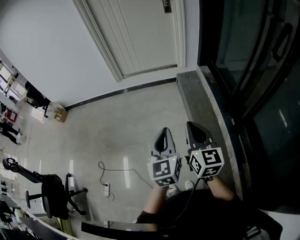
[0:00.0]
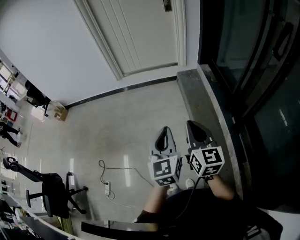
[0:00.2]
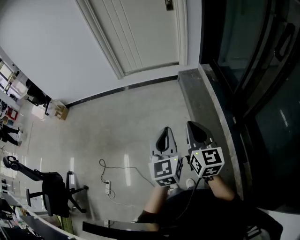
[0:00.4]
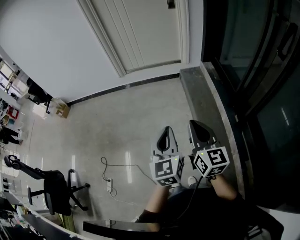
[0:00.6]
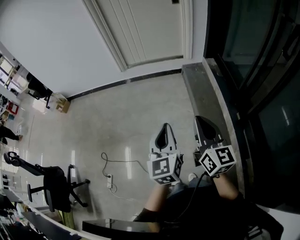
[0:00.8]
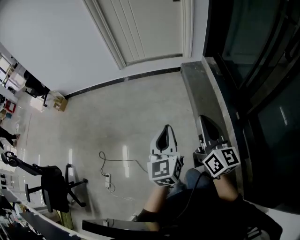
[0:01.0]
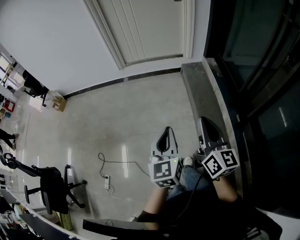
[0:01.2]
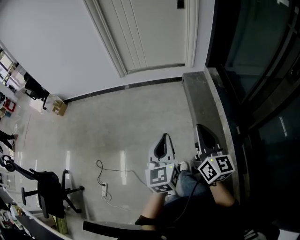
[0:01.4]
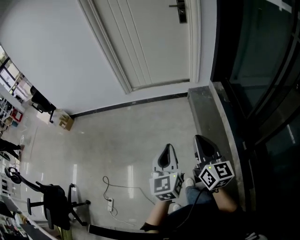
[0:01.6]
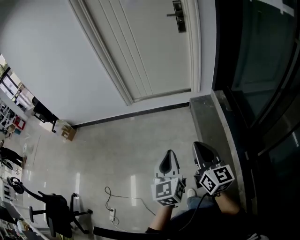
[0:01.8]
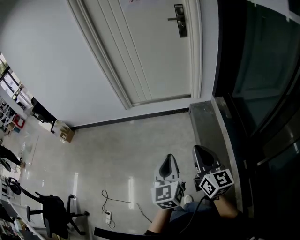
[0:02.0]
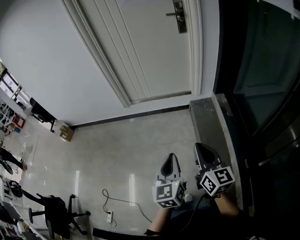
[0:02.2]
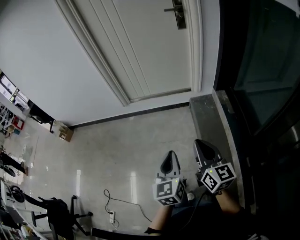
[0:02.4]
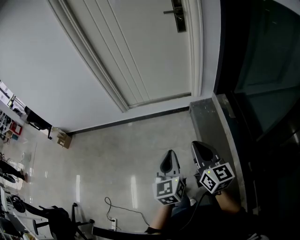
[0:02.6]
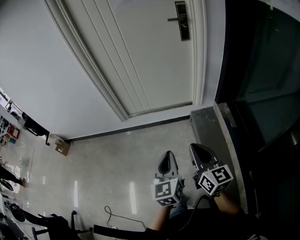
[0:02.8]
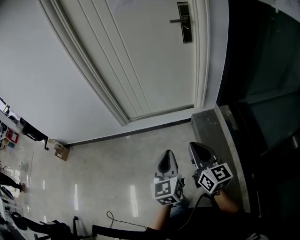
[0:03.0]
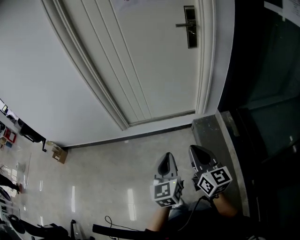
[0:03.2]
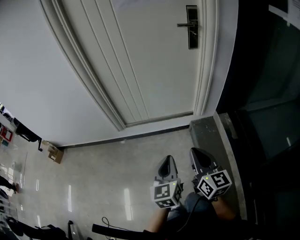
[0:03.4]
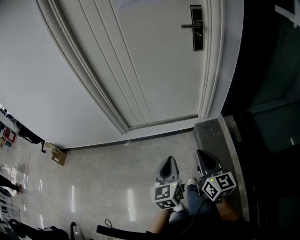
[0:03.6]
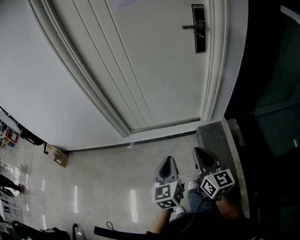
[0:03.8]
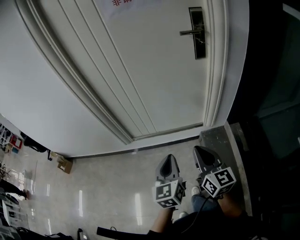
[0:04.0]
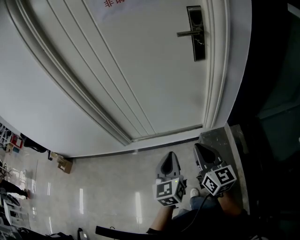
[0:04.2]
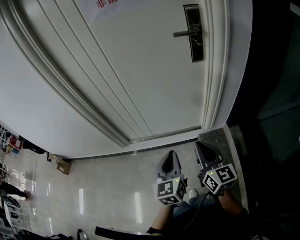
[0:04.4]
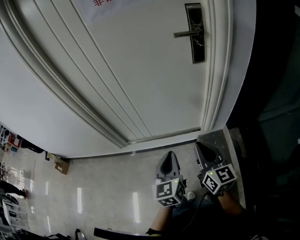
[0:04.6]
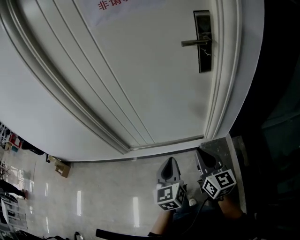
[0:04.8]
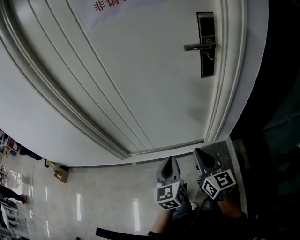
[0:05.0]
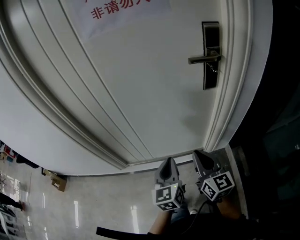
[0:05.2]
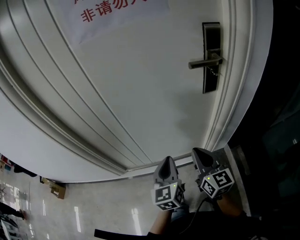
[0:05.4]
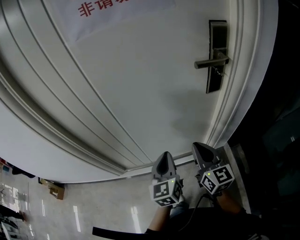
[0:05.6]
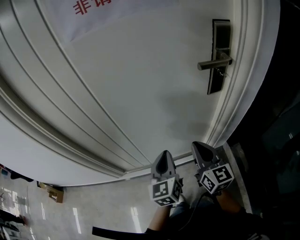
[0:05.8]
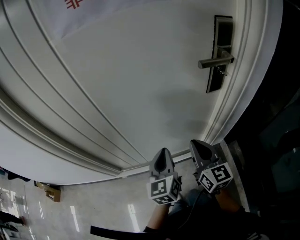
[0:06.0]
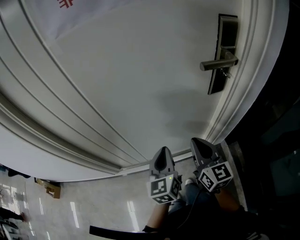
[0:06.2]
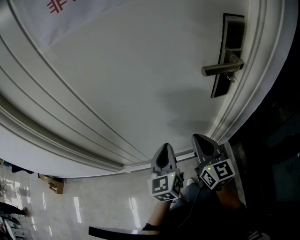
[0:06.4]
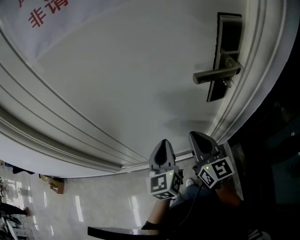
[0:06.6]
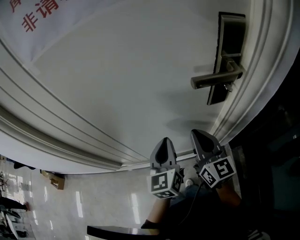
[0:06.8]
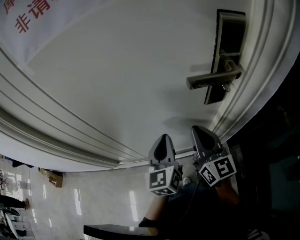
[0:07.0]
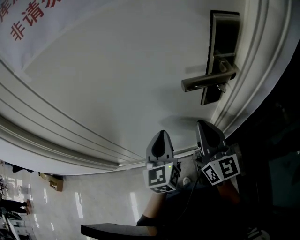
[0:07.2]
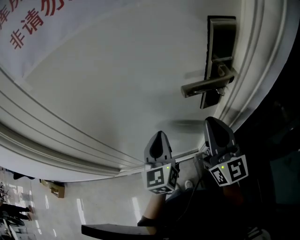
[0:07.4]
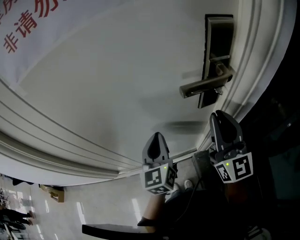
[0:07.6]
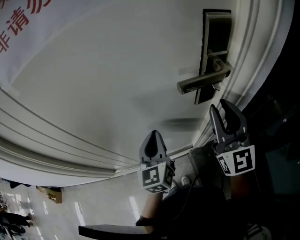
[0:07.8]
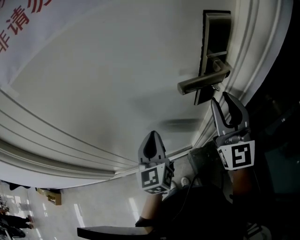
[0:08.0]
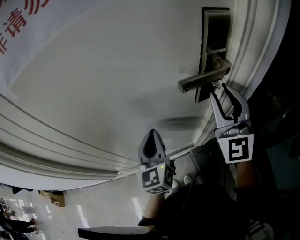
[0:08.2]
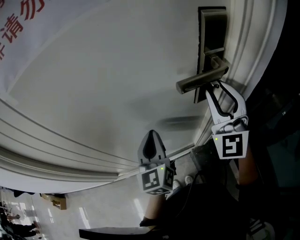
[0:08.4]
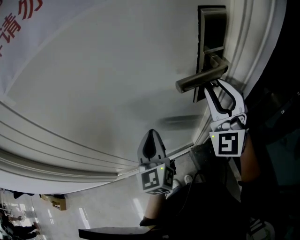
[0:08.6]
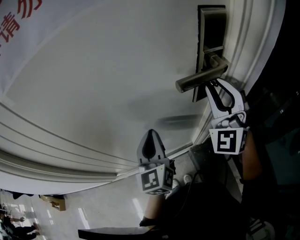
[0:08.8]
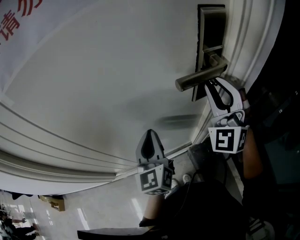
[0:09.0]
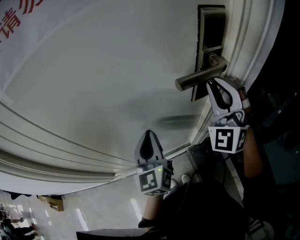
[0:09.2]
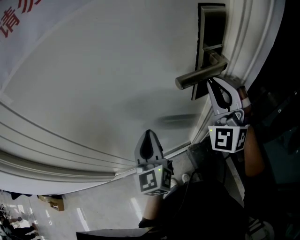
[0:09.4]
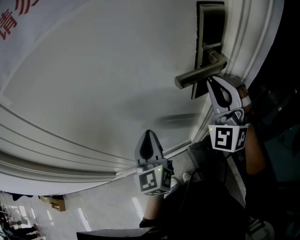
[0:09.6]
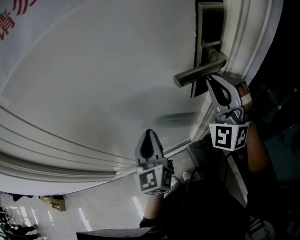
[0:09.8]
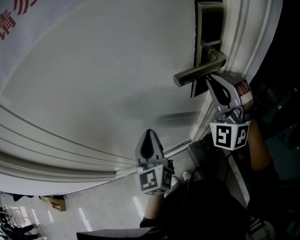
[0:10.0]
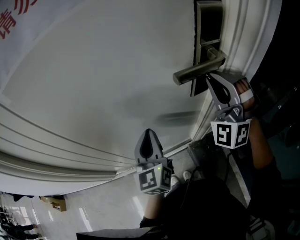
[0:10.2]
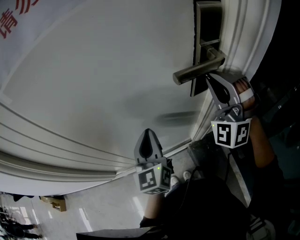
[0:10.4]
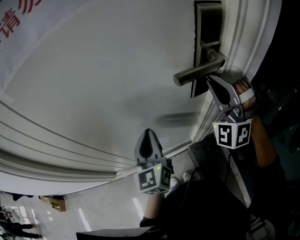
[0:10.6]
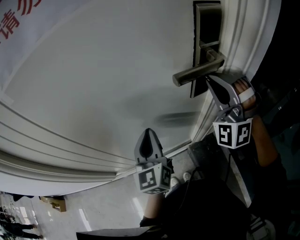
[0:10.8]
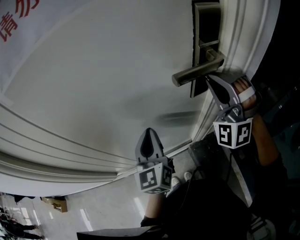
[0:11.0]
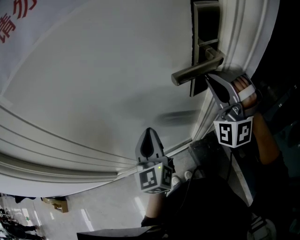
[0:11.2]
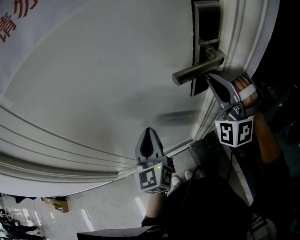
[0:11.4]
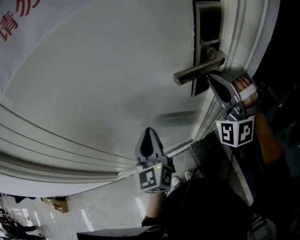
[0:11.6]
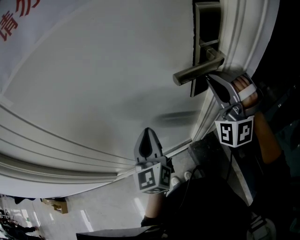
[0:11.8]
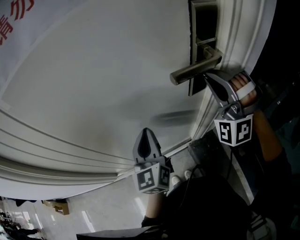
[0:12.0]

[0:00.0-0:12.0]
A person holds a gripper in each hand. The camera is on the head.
0:00.0 to 0:01.6: Both grippers travel together forward, approximately 15 cm.
0:01.6 to 0:03.0: Both grippers move forward, approximately 35 cm.
0:03.0 to 0:04.4: The grippers both shift forward by some 30 cm.
0:04.4 to 0:06.0: The grippers both shift forward by approximately 30 cm.
0:06.0 to 0:07.6: The right gripper heads to the right, upward and forward, covering roughly 20 cm, and rotates approximately 20 degrees. Meanwhile the left gripper goes some 15 cm forward and to the right.
0:07.6 to 0:09.0: The right gripper moves forward, approximately 5 cm, and twists about 60 degrees counterclockwise, seen from behind.
0:09.0 to 0:10.4: The right gripper turns by approximately 20 degrees.
0:10.4 to 0:12.0: The grippers stay close to where they were, moving slightly.

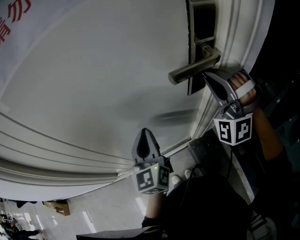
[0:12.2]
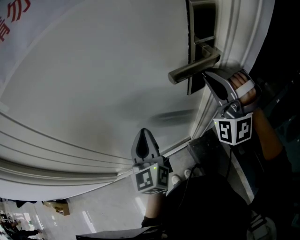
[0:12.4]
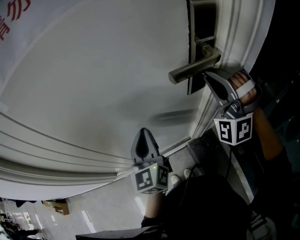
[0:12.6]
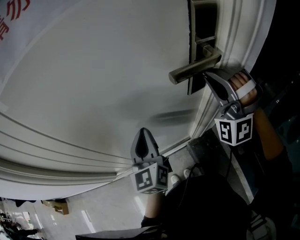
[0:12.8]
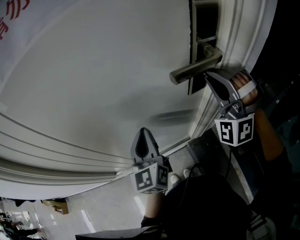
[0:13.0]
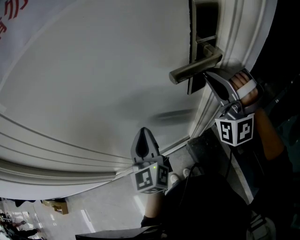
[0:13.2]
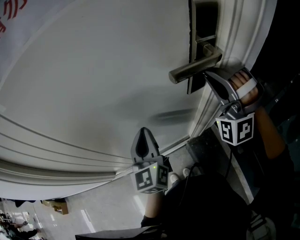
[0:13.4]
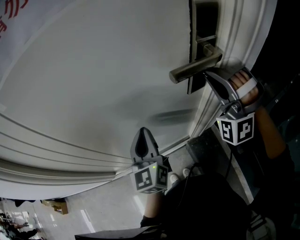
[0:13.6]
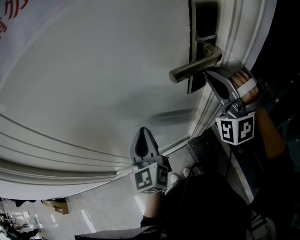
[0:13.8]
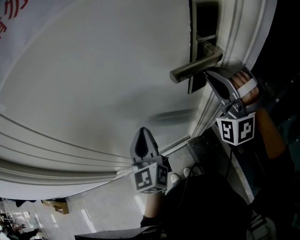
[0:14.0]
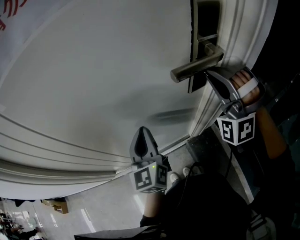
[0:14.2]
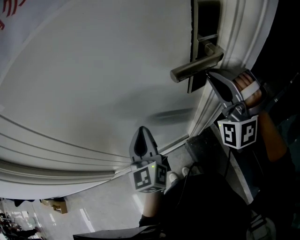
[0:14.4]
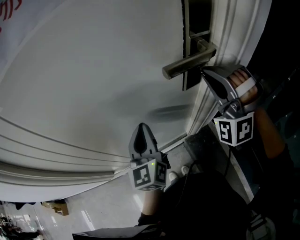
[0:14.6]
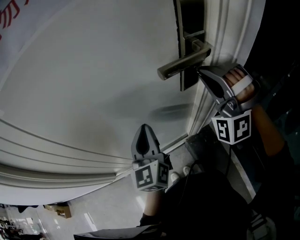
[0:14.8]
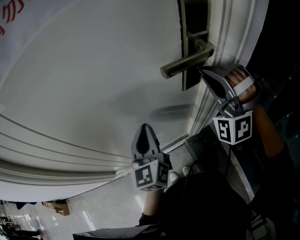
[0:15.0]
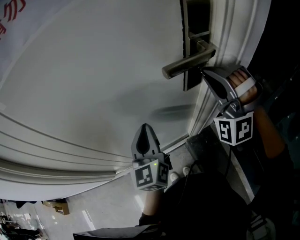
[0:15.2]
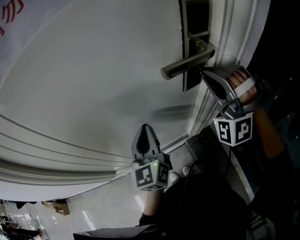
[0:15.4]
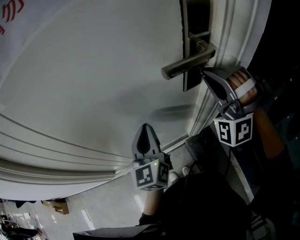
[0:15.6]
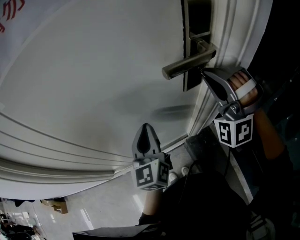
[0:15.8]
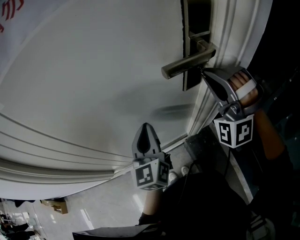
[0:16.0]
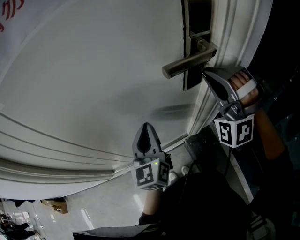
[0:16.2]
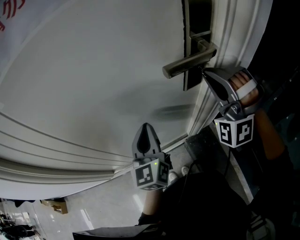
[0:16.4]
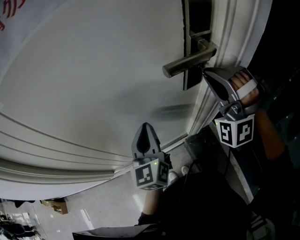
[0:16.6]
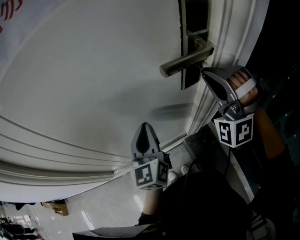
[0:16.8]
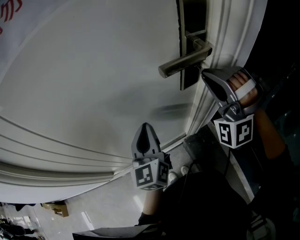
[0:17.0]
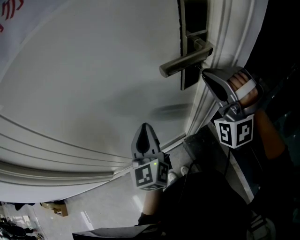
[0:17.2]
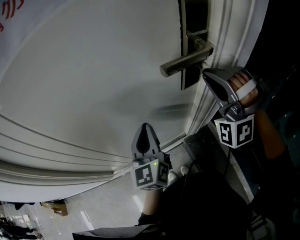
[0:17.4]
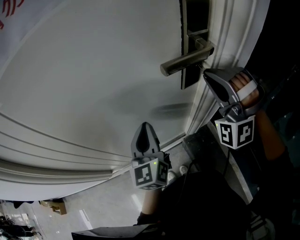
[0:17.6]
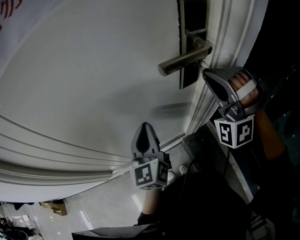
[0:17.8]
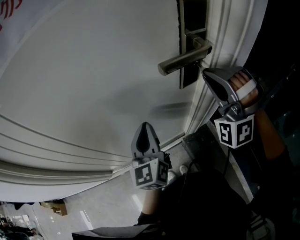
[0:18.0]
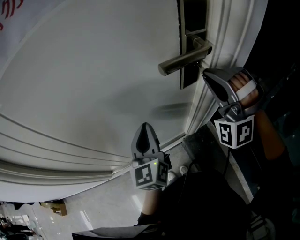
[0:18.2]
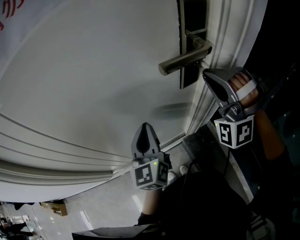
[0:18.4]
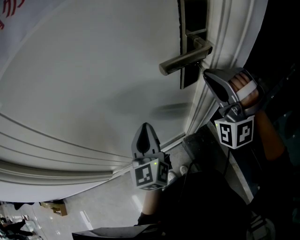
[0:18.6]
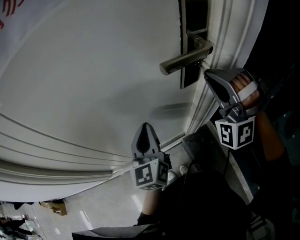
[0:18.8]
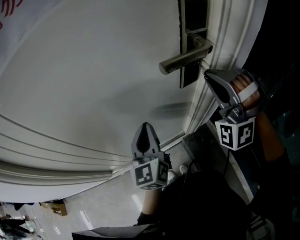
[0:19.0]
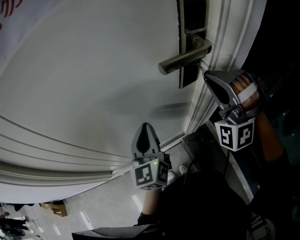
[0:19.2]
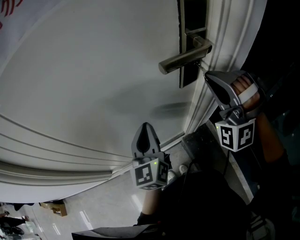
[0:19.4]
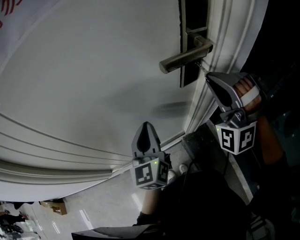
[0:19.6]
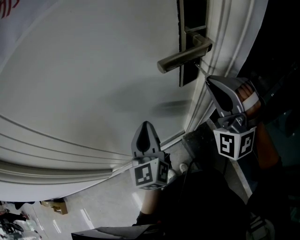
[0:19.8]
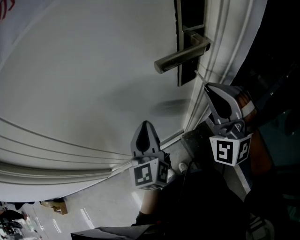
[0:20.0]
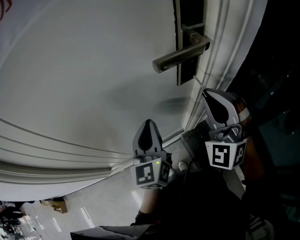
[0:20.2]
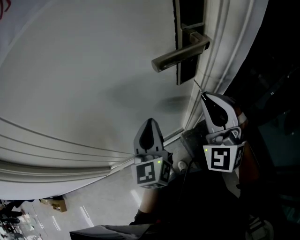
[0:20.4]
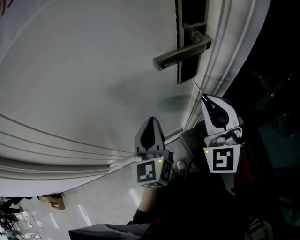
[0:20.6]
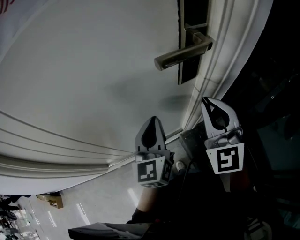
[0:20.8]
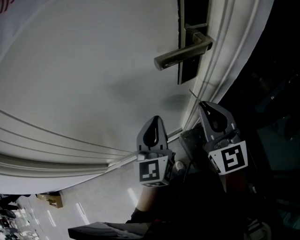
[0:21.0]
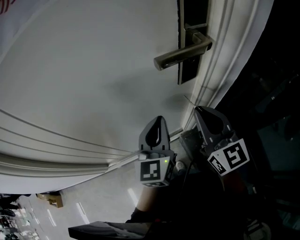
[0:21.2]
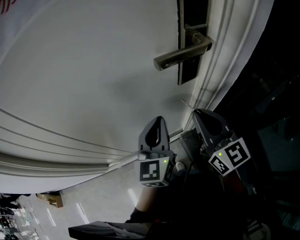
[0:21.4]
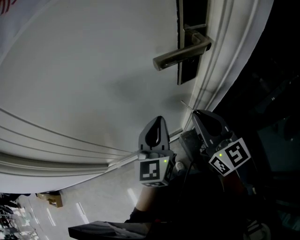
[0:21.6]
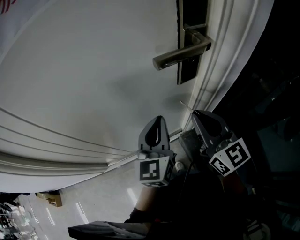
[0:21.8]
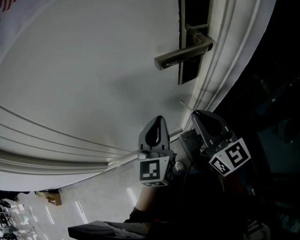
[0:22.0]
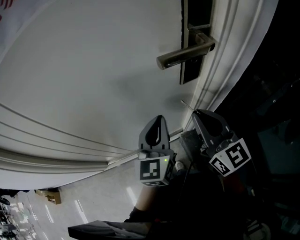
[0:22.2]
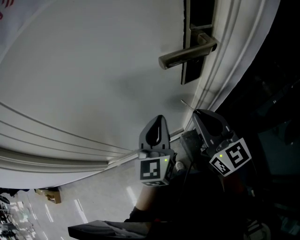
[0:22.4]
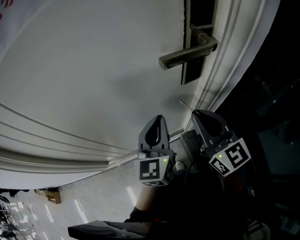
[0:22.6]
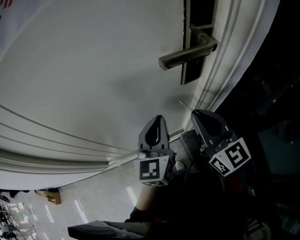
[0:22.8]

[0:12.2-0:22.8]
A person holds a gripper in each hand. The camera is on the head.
0:12.2 to 0:15.2: The grippers move only a little.
0:15.2 to 0:16.8: Both grippers stay about where they are.
0:16.8 to 0:18.2: Both grippers stay about where they are.
0:18.2 to 0:19.8: The grippers make only small movements.
0:19.8 to 0:21.2: The left gripper heads to the right, covering approximately 5 cm. Meanwhile the right gripper shifts approximately 5 cm downward, and rotates around the line of its fingers by approximately 80 degrees, clockwise from behind.
0:21.2 to 0:22.8: The grippers move only a little.

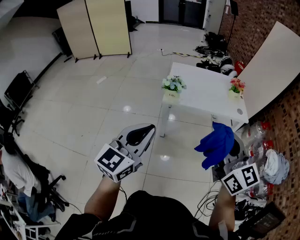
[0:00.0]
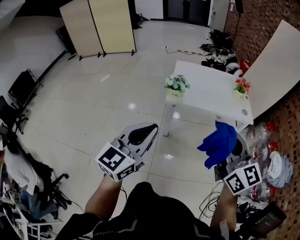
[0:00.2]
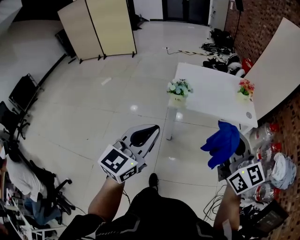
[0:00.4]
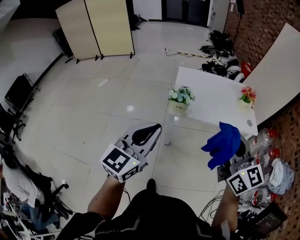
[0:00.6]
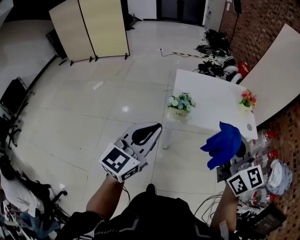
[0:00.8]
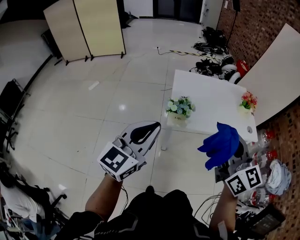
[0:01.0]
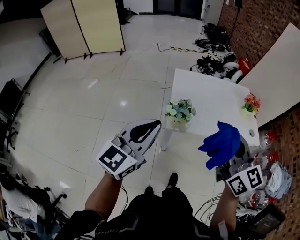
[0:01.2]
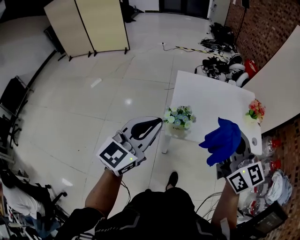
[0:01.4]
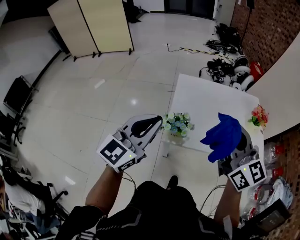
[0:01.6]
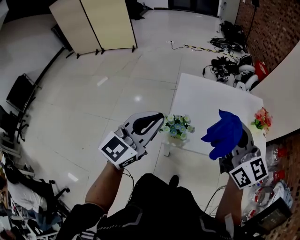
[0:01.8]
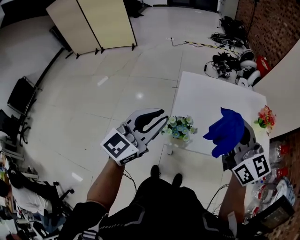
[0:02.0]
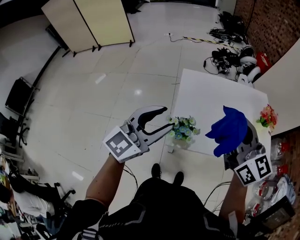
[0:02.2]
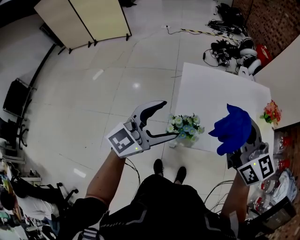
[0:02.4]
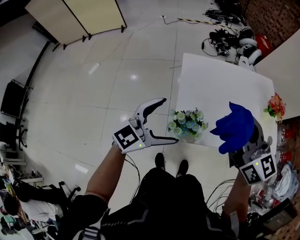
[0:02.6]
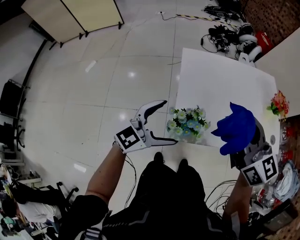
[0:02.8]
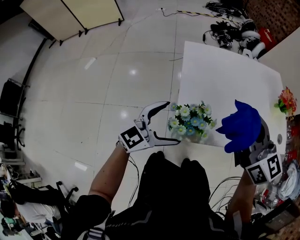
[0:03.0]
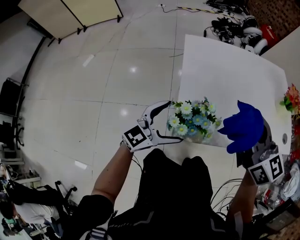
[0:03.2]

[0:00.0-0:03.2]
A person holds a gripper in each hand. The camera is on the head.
0:00.0 to 0:01.6: Both grippers are carried forward, roughly 40 cm.
0:01.6 to 0:03.2: The left gripper travels downward by about 30 cm, swivels approximately 30 degrees, and opens up; the right gripper is displaced downward and forward by approximately 25 cm.
